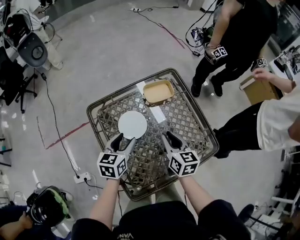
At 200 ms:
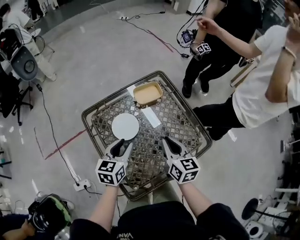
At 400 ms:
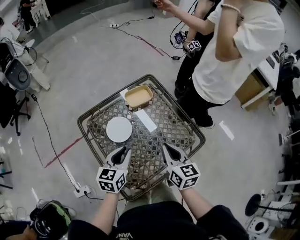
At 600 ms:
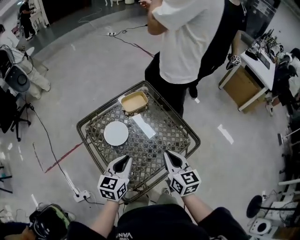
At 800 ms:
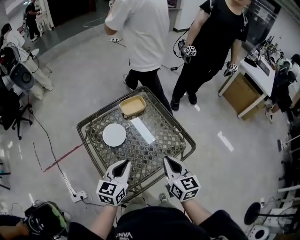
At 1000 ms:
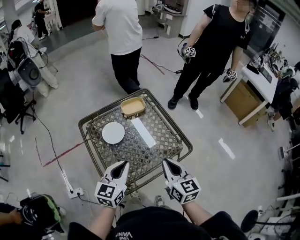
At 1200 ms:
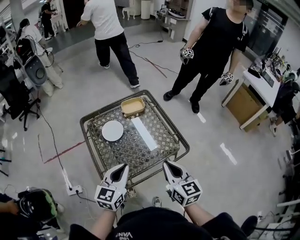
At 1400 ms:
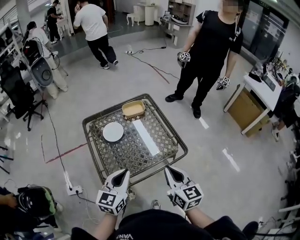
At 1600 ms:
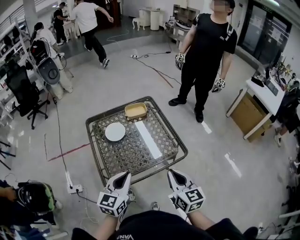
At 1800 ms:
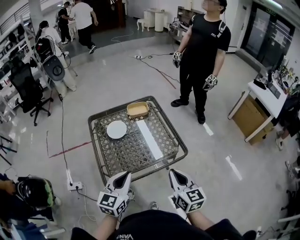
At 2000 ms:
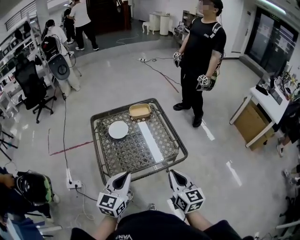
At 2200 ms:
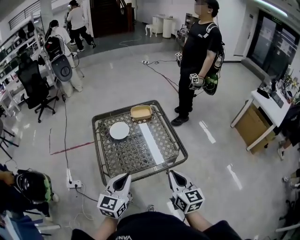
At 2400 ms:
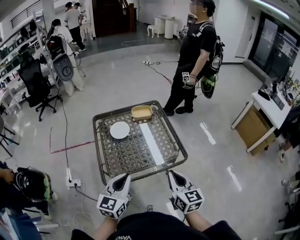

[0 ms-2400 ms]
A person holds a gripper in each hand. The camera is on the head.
0 ms to 1200 ms: Both grippers move backward, to the right and upward, approximately 30 cm. The left gripper turns by some 20 degrees, and closes its fingers; the right gripper closes up.
1200 ms to 2400 ms: The left gripper shifts some 10 cm backward. Meanwhile the right gripper goes some 10 cm backward and to the right.

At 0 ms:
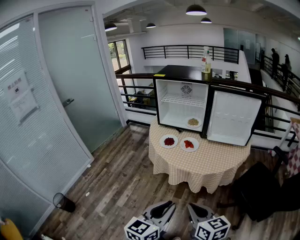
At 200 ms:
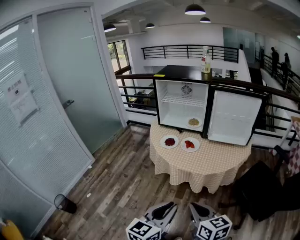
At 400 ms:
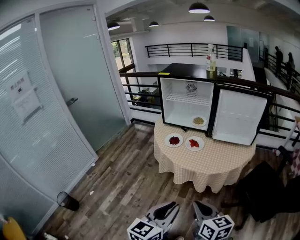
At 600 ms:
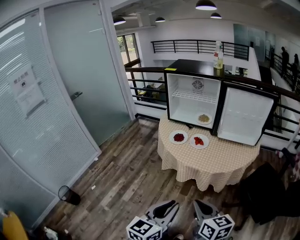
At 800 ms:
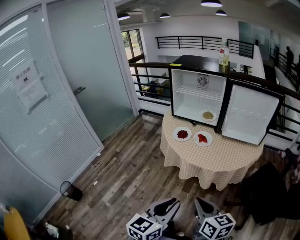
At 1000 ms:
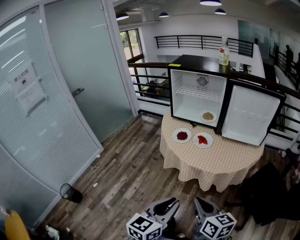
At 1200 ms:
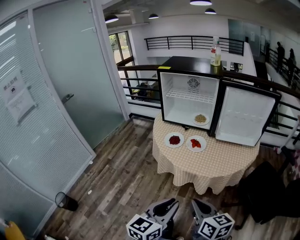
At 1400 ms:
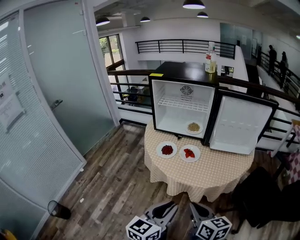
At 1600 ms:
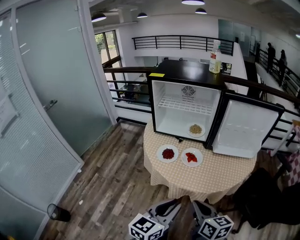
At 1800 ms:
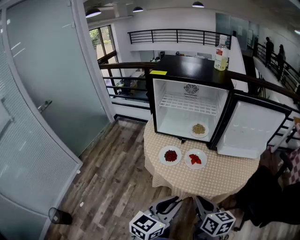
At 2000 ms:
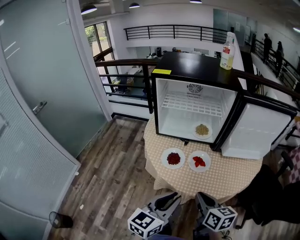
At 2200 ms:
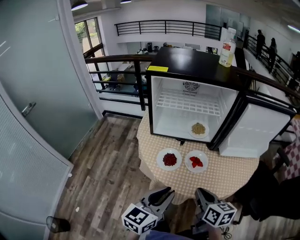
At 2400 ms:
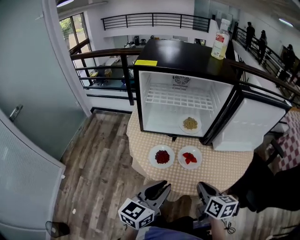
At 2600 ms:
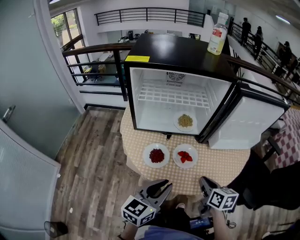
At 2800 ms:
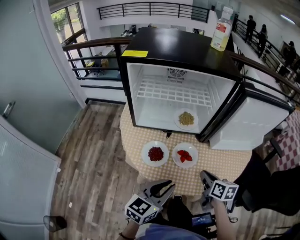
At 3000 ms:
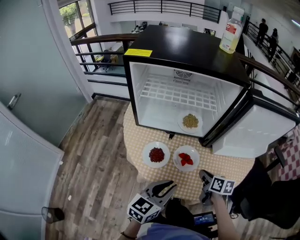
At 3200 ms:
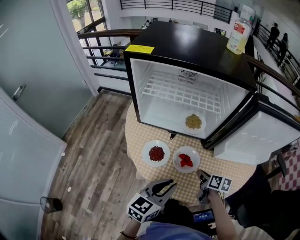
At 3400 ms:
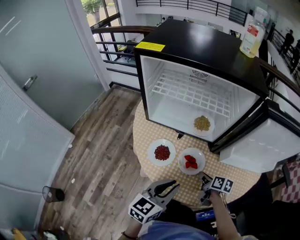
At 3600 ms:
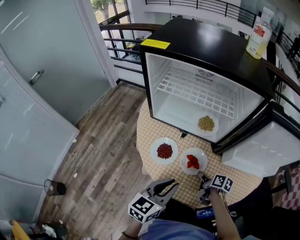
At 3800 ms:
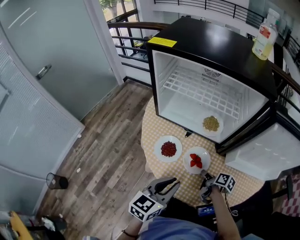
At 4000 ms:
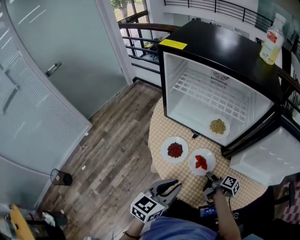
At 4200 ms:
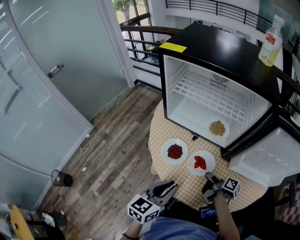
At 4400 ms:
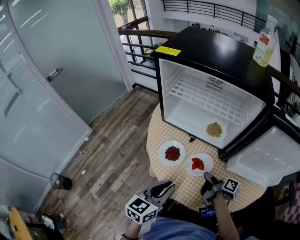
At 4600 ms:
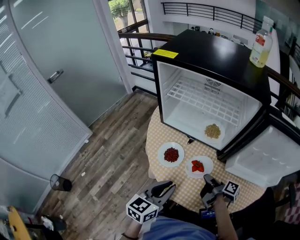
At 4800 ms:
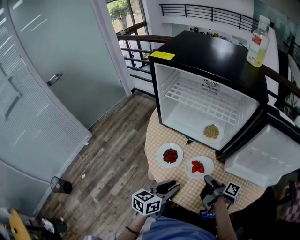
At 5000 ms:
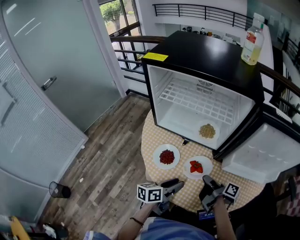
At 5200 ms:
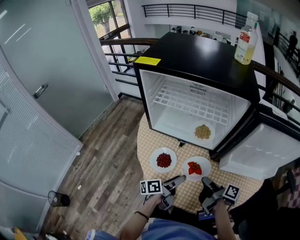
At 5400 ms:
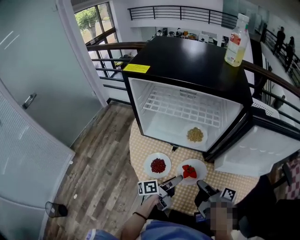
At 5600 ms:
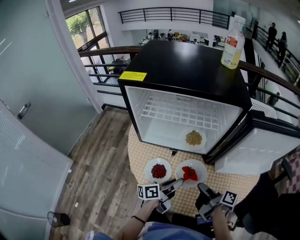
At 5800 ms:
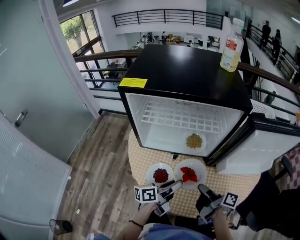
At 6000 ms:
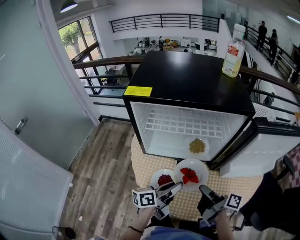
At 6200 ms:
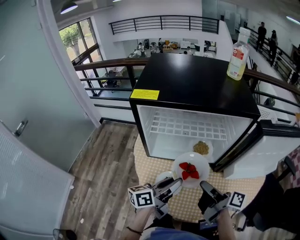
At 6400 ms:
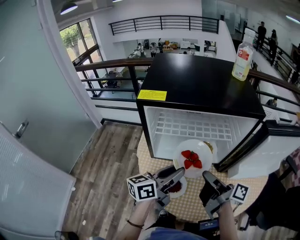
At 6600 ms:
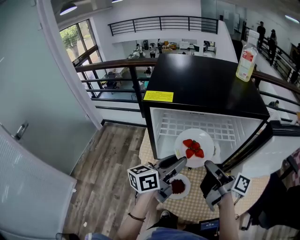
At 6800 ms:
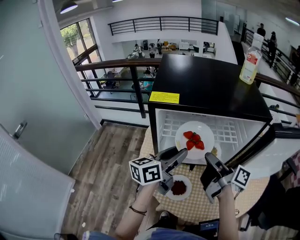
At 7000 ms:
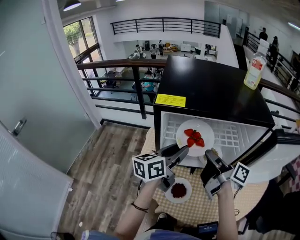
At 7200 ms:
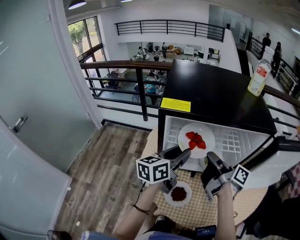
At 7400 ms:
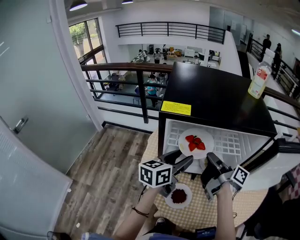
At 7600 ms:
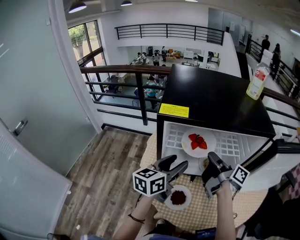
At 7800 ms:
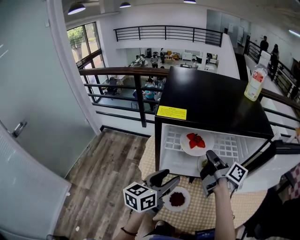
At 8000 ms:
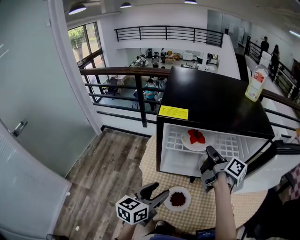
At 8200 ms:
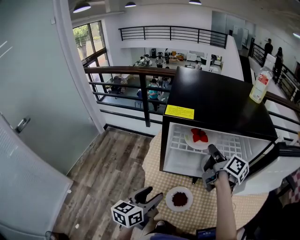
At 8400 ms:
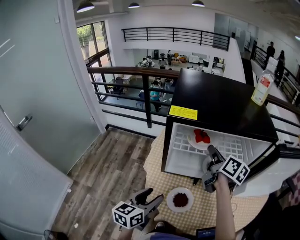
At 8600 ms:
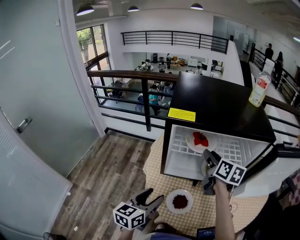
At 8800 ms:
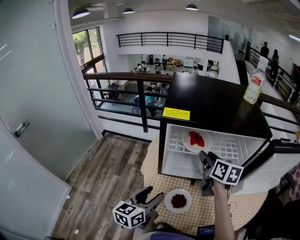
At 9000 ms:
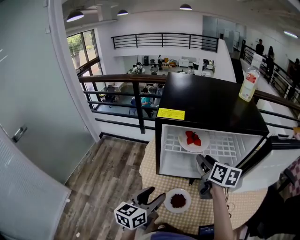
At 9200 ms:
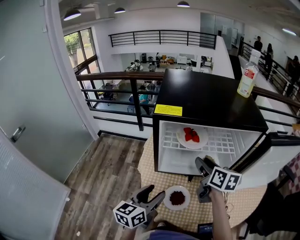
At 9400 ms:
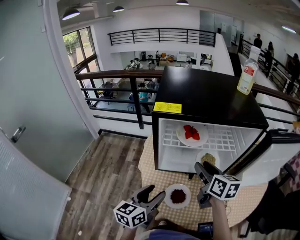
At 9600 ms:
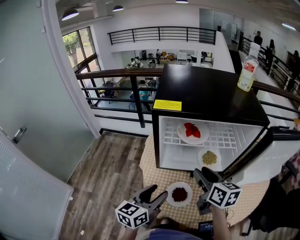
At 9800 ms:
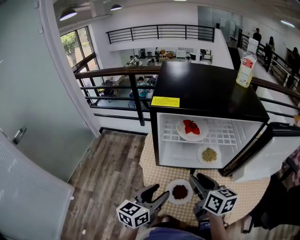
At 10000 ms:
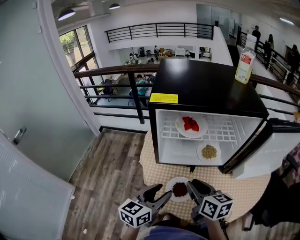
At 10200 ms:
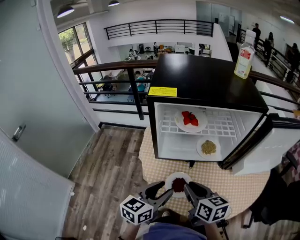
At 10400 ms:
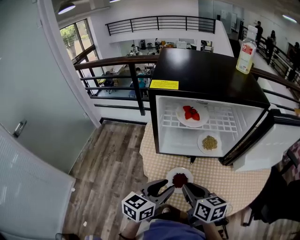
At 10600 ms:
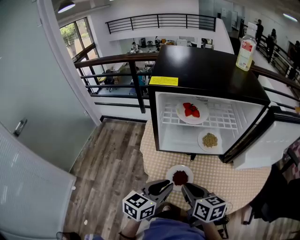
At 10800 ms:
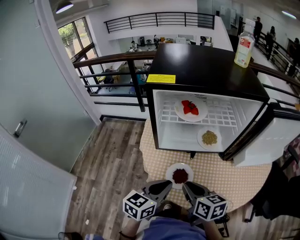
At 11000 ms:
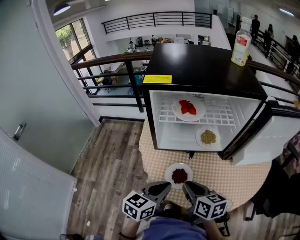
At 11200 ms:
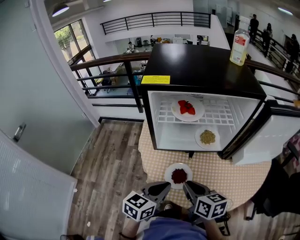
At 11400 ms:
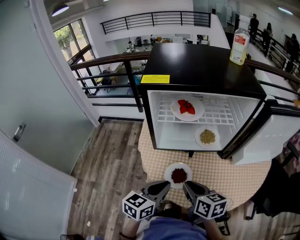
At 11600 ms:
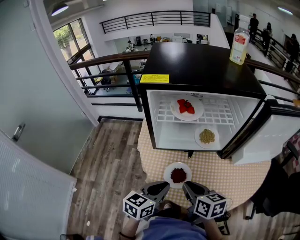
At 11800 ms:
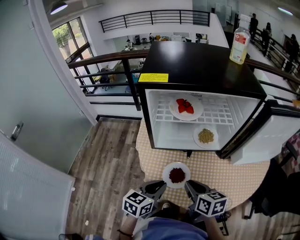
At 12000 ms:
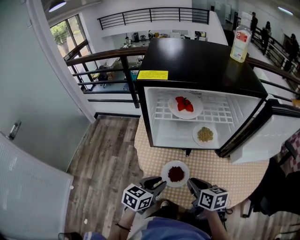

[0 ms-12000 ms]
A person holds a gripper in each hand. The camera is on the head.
0 ms to 1600 ms: Both grippers travel together forward, about 20 cm.
1600 ms to 3000 ms: Both grippers move forward and downward, some 30 cm. The right gripper swivels approximately 30 degrees.
3000 ms to 4400 ms: The left gripper swivels some 30 degrees; the right gripper reaches approximately 10 cm downward, then returns, and rotates about 40 degrees.
4400 ms to 6000 ms: The right gripper heads upward, covering approximately 15 cm. The left gripper travels forward by approximately 15 cm, changes its angle by roughly 50 degrees, and opens, then closes again.
6000 ms to 7600 ms: The grippers both shift forward, to the left and upward by approximately 20 cm. The left gripper changes its angle by about 30 degrees, and opens.
7600 ms to 9000 ms: The left gripper heads backward, to the left and downward, covering approximately 15 cm. Meanwhile the right gripper twists approximately 40 degrees counterclockwise, seen from behind, and opens.
9000 ms to 10400 ms: The right gripper goes about 25 cm backward and downward, and closes; the left gripper moves to the right, roughly 5 cm.
10400 ms to 12000 ms: The right gripper travels downward and to the right by roughly 10 cm. The left gripper travels downward by about 10 cm.

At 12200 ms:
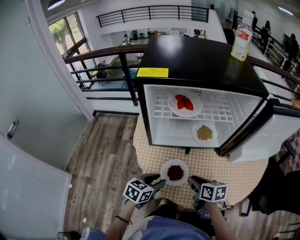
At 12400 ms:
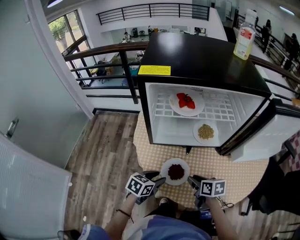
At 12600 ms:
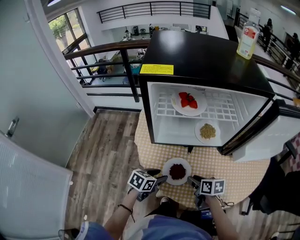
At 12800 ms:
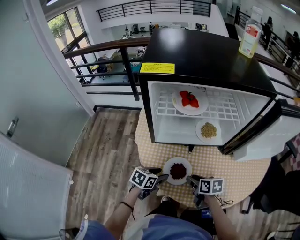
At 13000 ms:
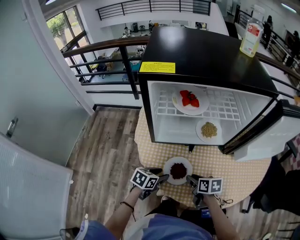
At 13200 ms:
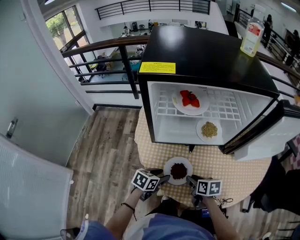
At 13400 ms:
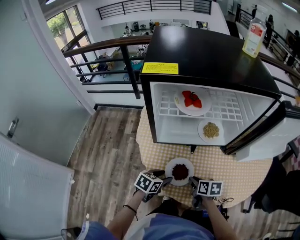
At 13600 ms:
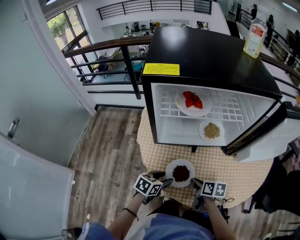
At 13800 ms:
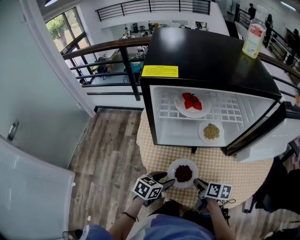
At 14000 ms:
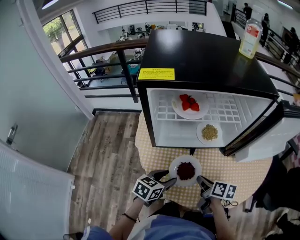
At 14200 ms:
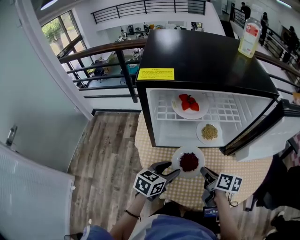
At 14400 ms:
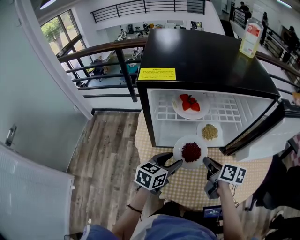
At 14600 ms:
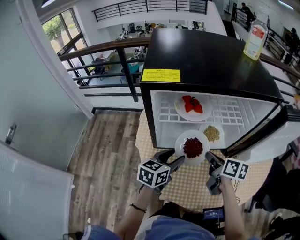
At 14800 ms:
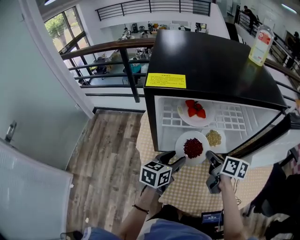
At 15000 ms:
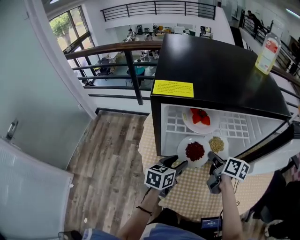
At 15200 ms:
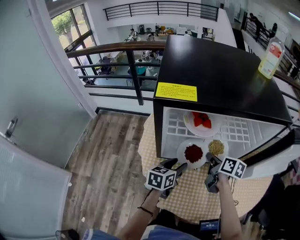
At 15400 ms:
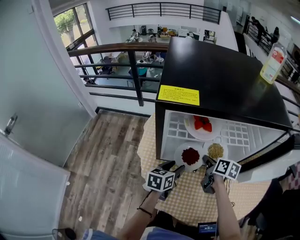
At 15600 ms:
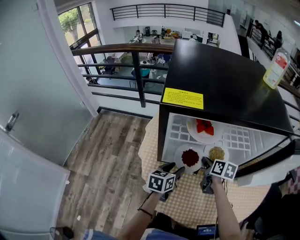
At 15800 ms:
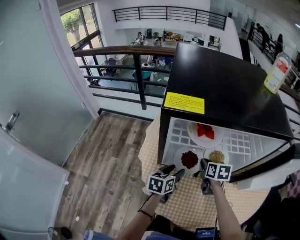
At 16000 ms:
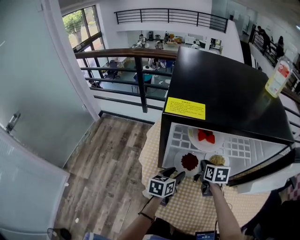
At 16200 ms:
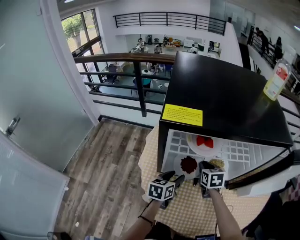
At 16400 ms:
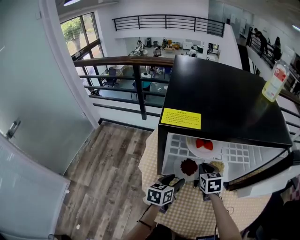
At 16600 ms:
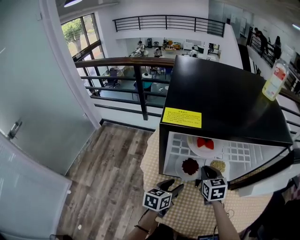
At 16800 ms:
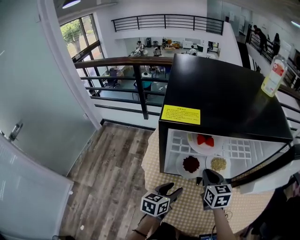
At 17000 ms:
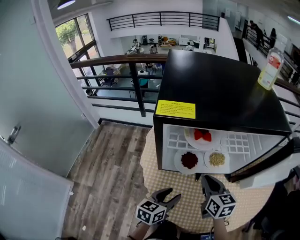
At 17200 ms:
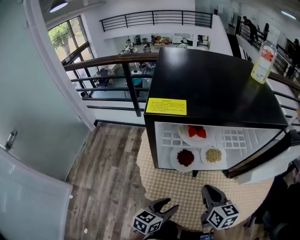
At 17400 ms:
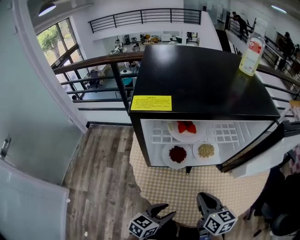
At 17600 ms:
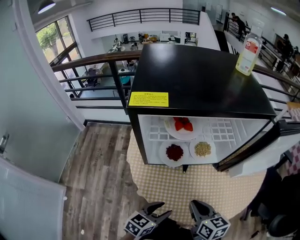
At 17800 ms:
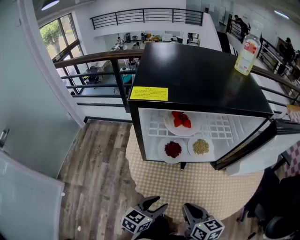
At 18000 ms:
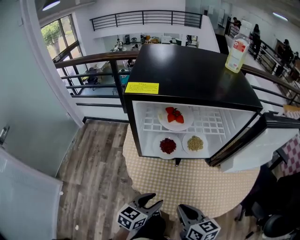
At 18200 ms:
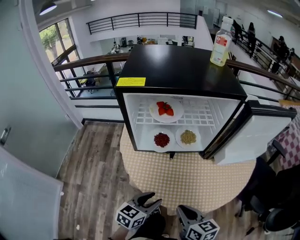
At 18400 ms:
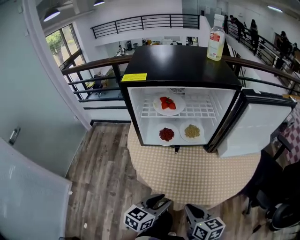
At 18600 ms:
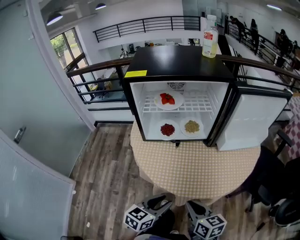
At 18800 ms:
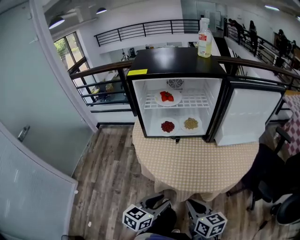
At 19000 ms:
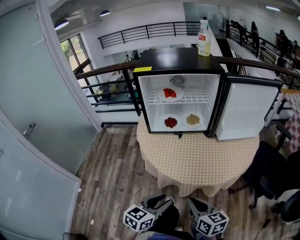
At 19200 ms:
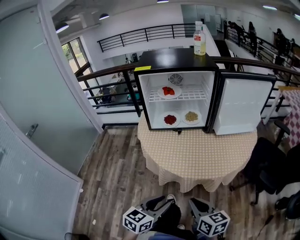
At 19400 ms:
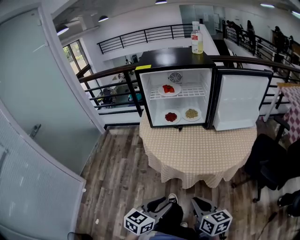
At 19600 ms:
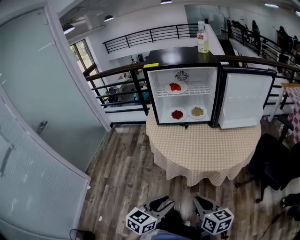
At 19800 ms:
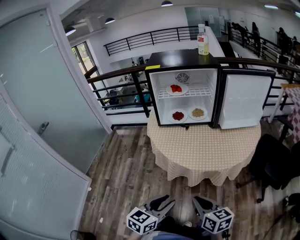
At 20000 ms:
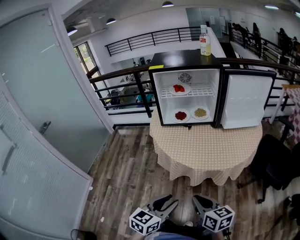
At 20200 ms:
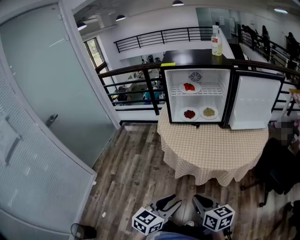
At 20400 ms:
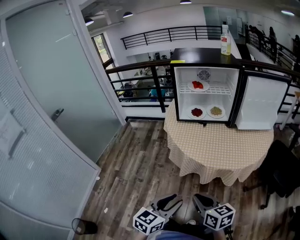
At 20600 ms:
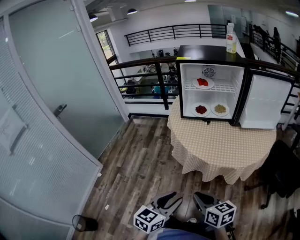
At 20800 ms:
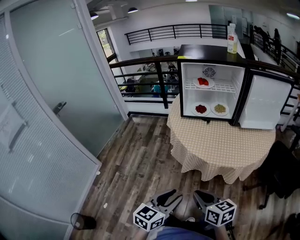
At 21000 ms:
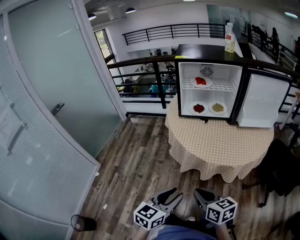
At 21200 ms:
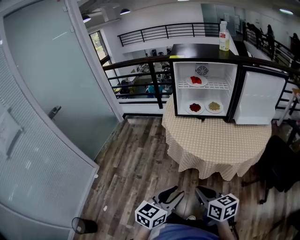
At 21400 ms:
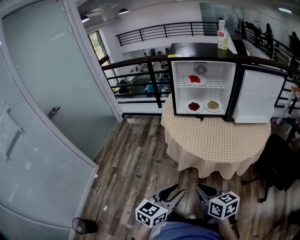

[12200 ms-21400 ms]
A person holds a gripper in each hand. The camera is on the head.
13800 ms to 15200 ms: The right gripper heads forward and upward, covering roughly 20 cm. Meanwhile the left gripper is displaced forward by approximately 15 cm.
15200 ms to 16800 ms: The right gripper changes place by about 5 cm, and rolls counterclockwise, seen from behind, by about 40 degrees; the left gripper goes roughly 5 cm backward.
16800 ms to 18400 ms: The right gripper travels backward by approximately 35 cm, and turns by approximately 20 degrees; the left gripper travels backward and to the right by approximately 25 cm.
18400 ms to 19800 ms: The grippers both shift backward by approximately 25 cm.
19800 ms to 21400 ms: The right gripper is displaced to the left by approximately 5 cm.
